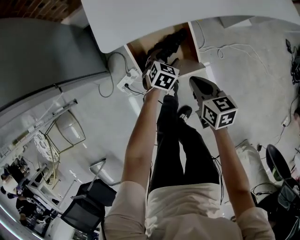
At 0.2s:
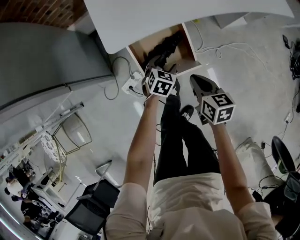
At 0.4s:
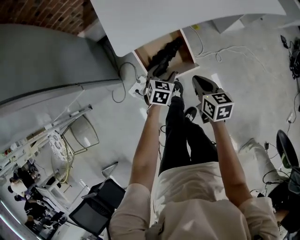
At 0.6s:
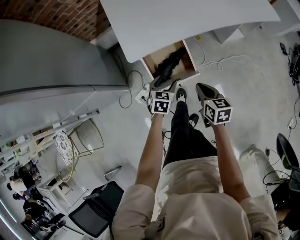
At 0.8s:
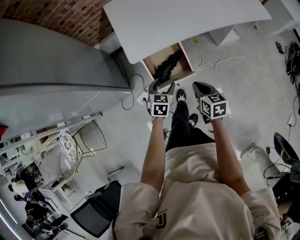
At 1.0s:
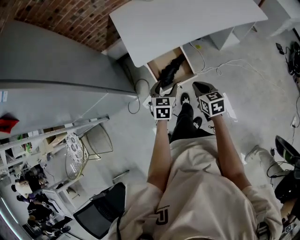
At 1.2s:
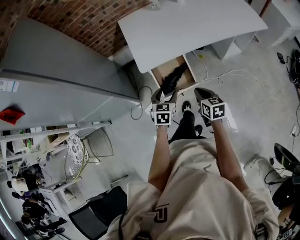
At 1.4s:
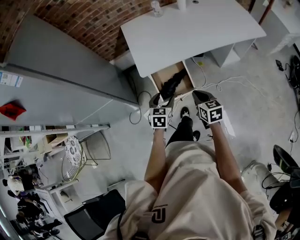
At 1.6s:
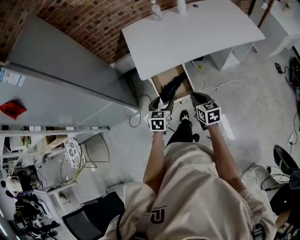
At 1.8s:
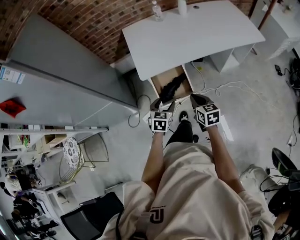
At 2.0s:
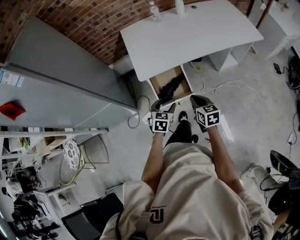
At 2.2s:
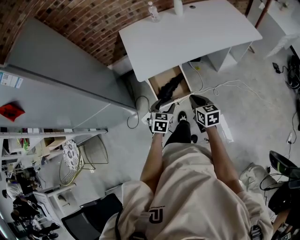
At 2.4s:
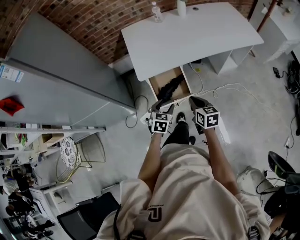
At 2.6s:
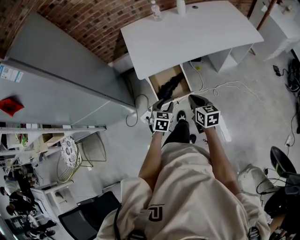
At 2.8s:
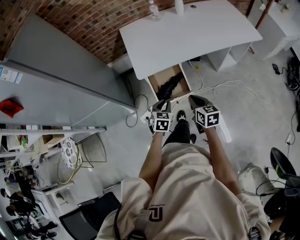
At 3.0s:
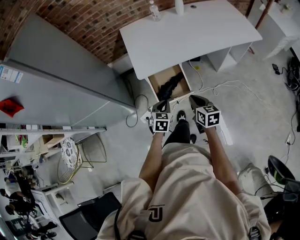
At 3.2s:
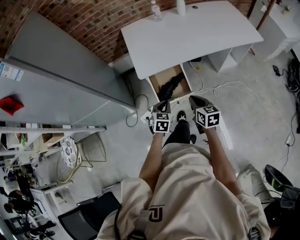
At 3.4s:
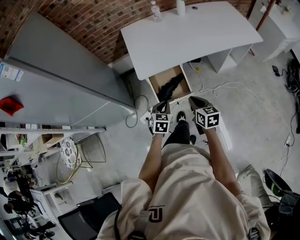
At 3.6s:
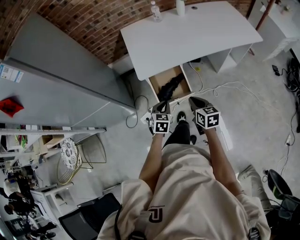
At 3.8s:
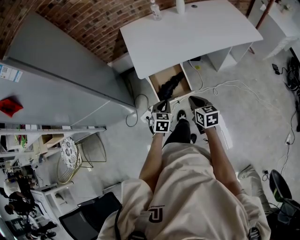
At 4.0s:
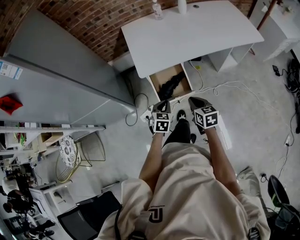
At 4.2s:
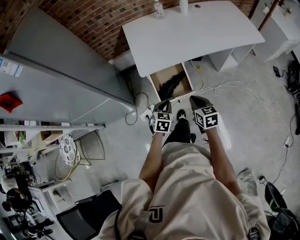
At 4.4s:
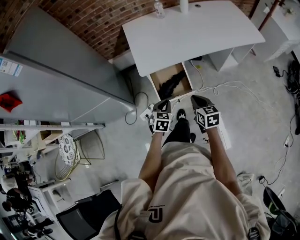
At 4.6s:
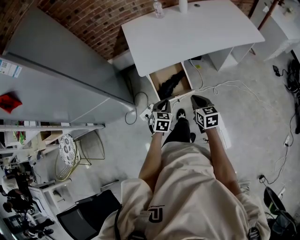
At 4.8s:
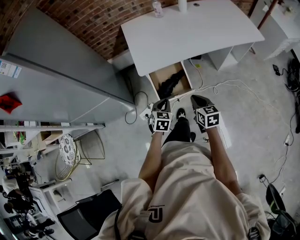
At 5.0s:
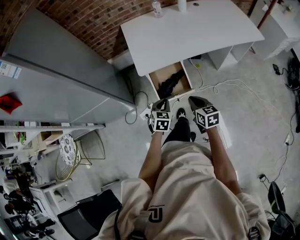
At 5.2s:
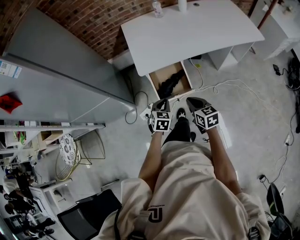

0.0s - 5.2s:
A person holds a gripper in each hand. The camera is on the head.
0.0s - 1.8s: The right gripper heads upward, covering approximately 20 cm; the left gripper heads upward and backward, covering about 35 cm.
1.8s - 3.4s: The left gripper closes.
3.4s - 5.2s: There are only small adjustments of the grippers.

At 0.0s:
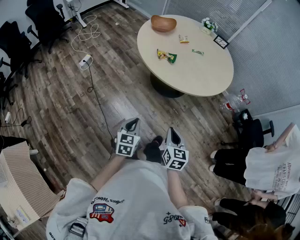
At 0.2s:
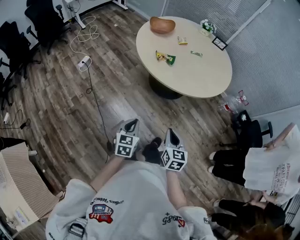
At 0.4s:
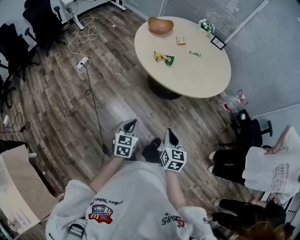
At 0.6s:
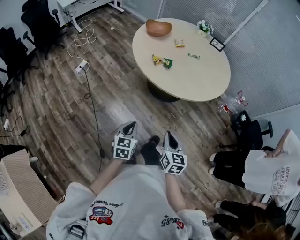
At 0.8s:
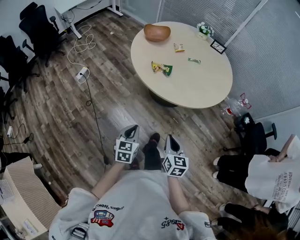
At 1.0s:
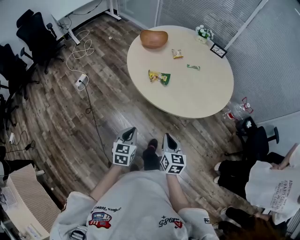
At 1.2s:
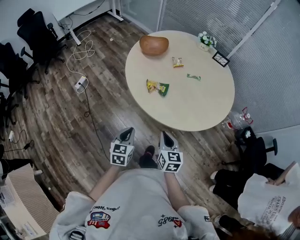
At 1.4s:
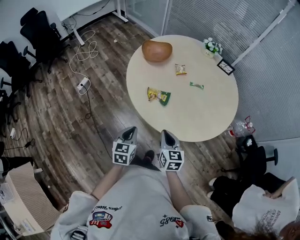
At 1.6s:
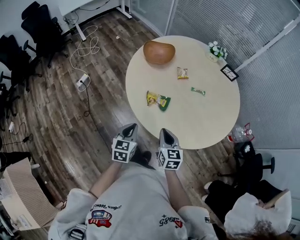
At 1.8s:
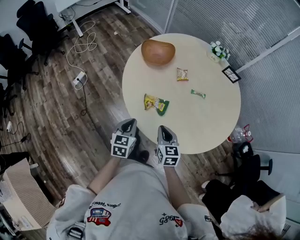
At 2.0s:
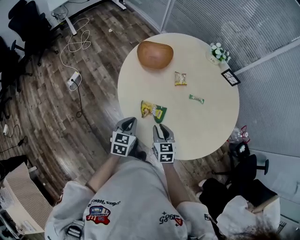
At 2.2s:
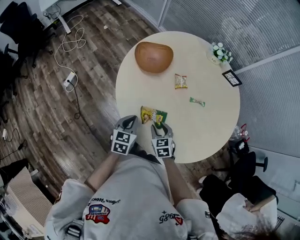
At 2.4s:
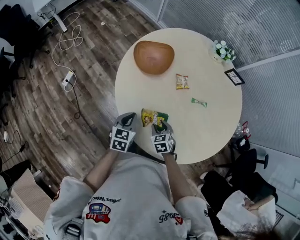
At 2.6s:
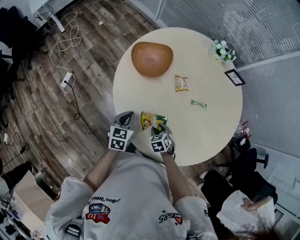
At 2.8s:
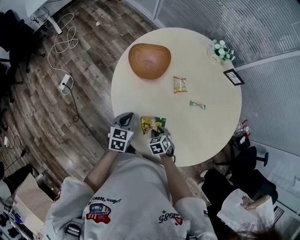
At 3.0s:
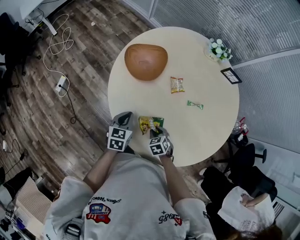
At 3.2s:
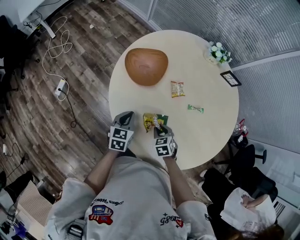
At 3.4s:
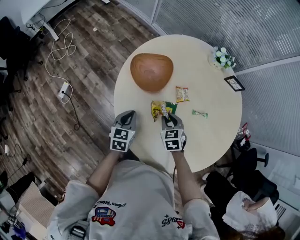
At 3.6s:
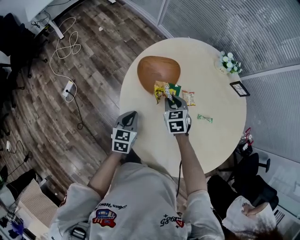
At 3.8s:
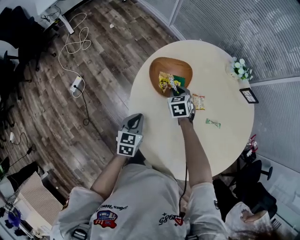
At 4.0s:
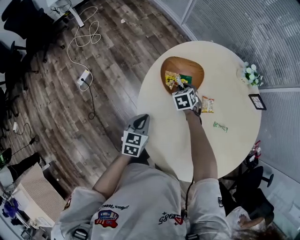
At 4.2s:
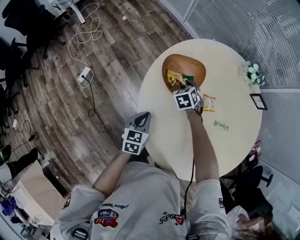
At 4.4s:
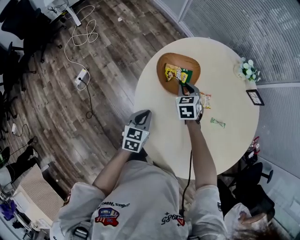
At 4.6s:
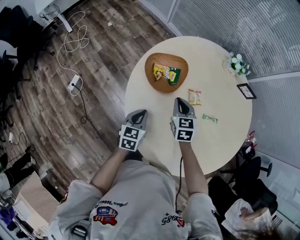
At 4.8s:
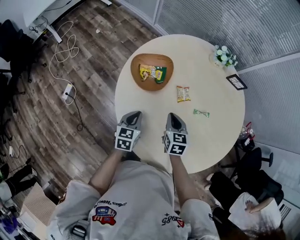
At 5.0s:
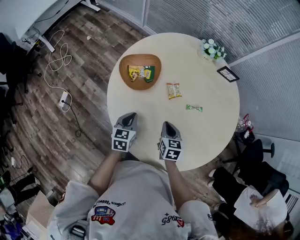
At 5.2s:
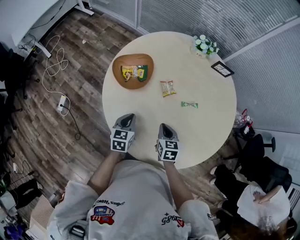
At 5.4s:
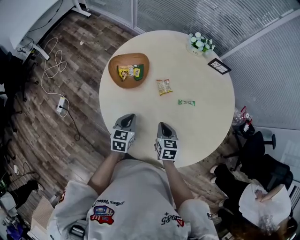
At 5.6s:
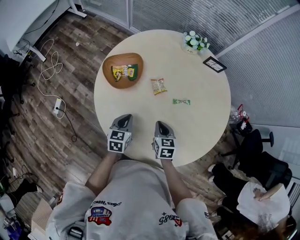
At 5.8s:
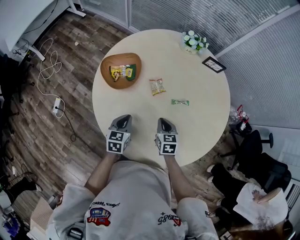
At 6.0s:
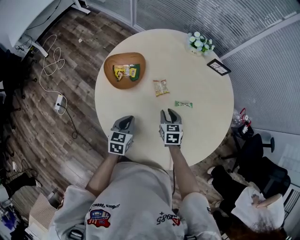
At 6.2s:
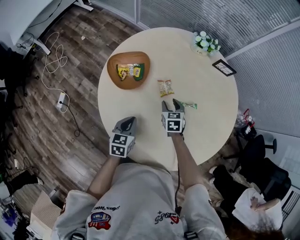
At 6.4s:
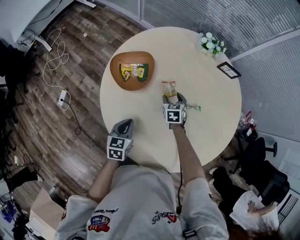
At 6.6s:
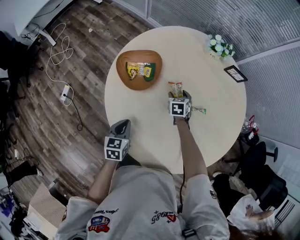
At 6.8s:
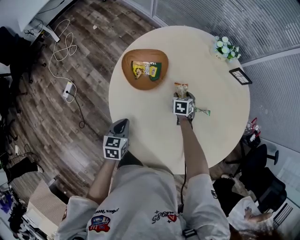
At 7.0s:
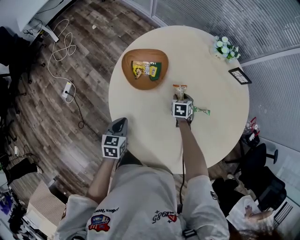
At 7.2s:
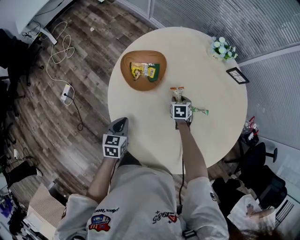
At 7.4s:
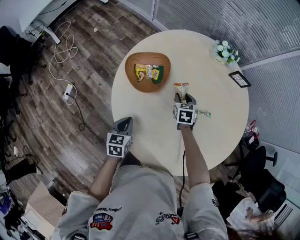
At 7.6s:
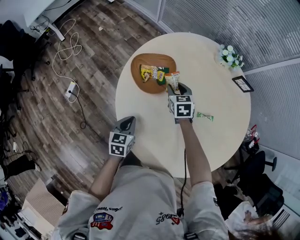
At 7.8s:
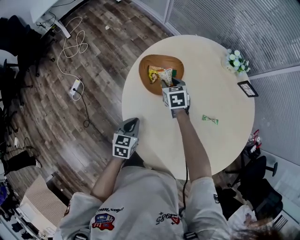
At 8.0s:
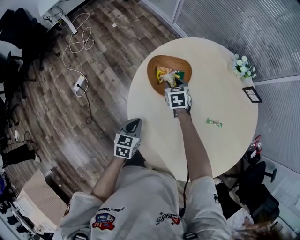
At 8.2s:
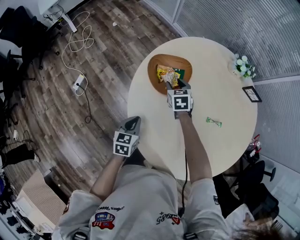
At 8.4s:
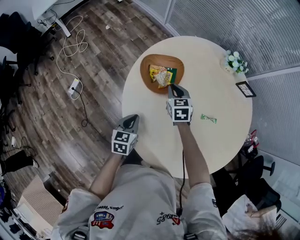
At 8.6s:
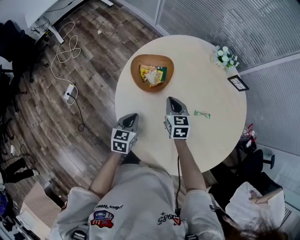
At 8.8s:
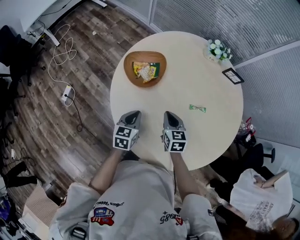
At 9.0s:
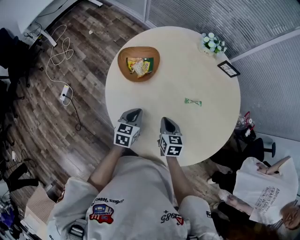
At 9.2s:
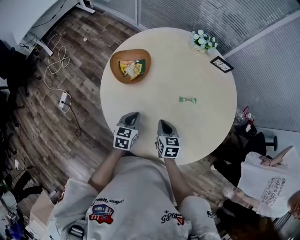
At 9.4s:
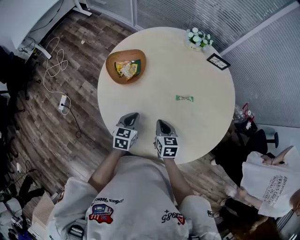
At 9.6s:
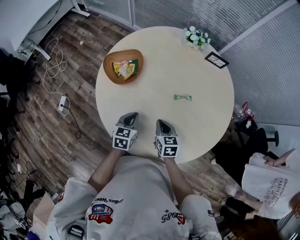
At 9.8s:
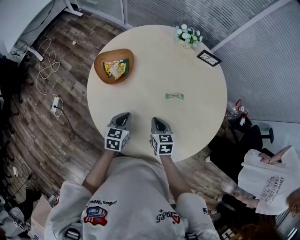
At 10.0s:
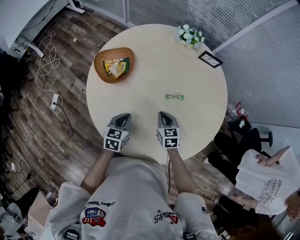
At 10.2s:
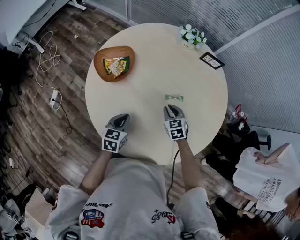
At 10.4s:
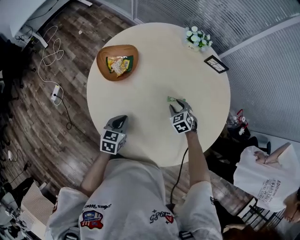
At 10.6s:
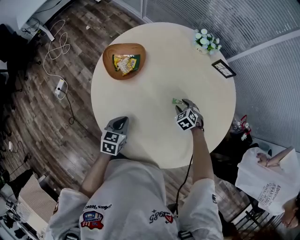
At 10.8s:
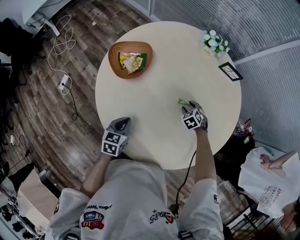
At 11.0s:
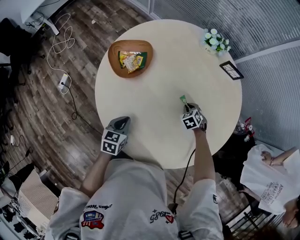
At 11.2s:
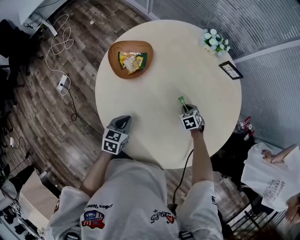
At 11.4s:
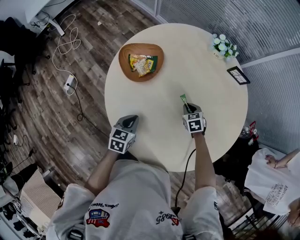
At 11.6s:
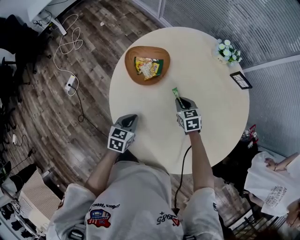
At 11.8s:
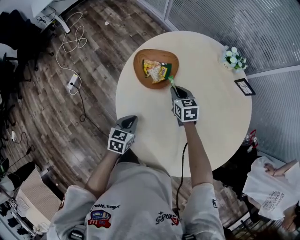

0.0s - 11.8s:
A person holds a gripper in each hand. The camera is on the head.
0.0s - 1.4s: The grippers both shift forward by about 30 cm.
1.4s - 3.0s: The right gripper is displaced forward and downward by about 30 cm, tilts its fingers roughly 40 degrees downward, and opens up; the left gripper travels forward by some 30 cm.
3.0s - 4.4s: The left gripper travels to the left and forward by approximately 10 cm. Meanwhile the right gripper travels forward and upward by approximately 30 cm.
4.4s - 6.0s: The left gripper shifts about 15 cm to the right, while the right gripper goes some 25 cm to the right and backward, and changes its angle by roughly 30 degrees.
6.0s - 7.4s: The right gripper goes roughly 15 cm forward and to the left, and opens, then closes once more; the left gripper goes some 10 cm to the left.
7.4s - 8.8s: The left gripper ends up about 5 cm from where it was. The right gripper travels backward, upward and to the left by some 15 cm, and closes up.
8.8s - 10.4s: The left gripper shifts approximately 10 cm to the right, while the right gripper shifts some 20 cm to the right and downward, changes its angle by some 40 degrees, and opens.
10.4s - 11.8s: The right gripper heads to the left and forward, covering some 25 cm, rotates approximately 30 degrees, and closes up; the left gripper goes about 10 cm to the left.

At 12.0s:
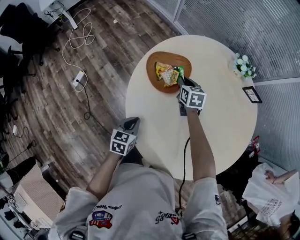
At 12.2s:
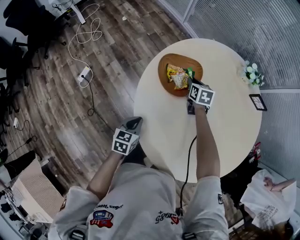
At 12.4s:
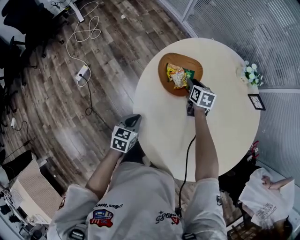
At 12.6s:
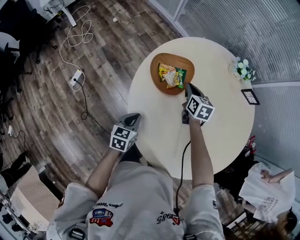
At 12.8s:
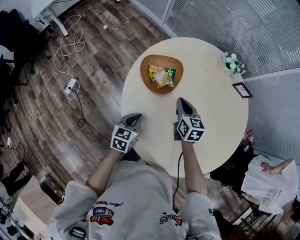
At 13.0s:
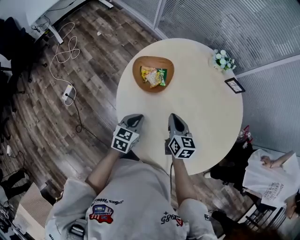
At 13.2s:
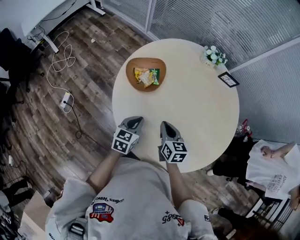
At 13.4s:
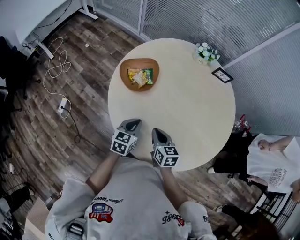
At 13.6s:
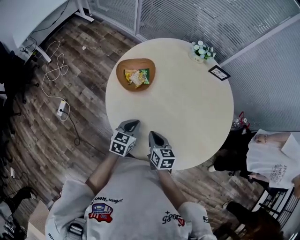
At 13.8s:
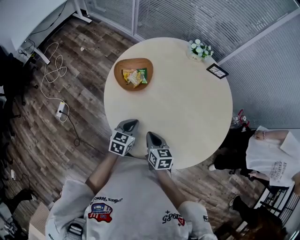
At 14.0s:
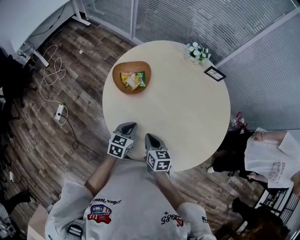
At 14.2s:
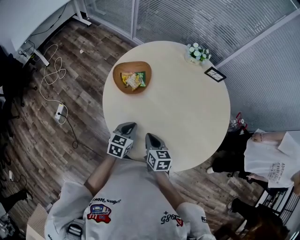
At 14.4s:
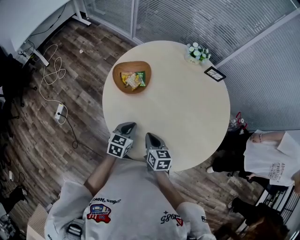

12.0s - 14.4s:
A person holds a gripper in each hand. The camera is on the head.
12.0s - 13.2s: The right gripper travels backward by some 25 cm. Meanwhile the left gripper heads to the right and upward, covering approximately 10 cm.
13.2s - 14.4s: The right gripper moves backward, approximately 5 cm.

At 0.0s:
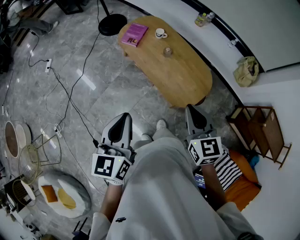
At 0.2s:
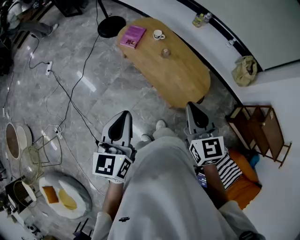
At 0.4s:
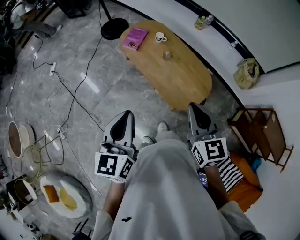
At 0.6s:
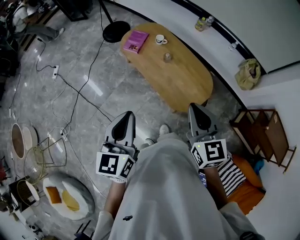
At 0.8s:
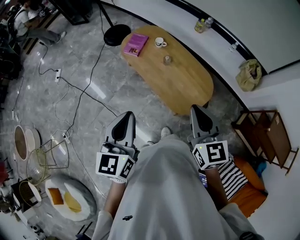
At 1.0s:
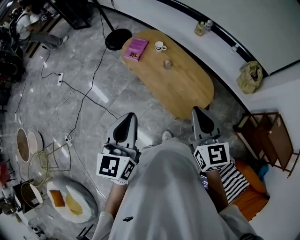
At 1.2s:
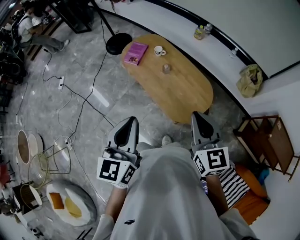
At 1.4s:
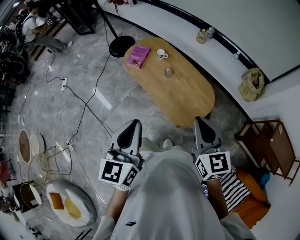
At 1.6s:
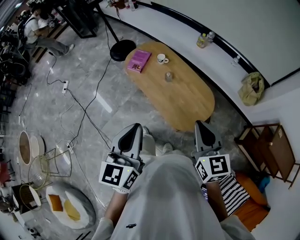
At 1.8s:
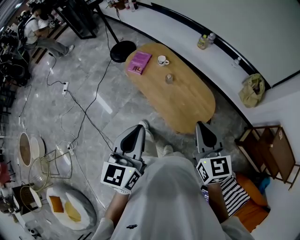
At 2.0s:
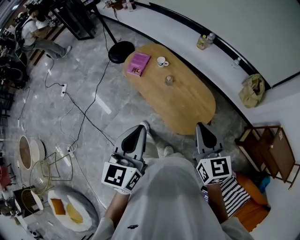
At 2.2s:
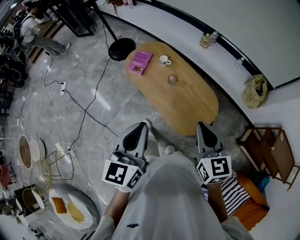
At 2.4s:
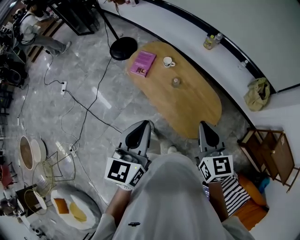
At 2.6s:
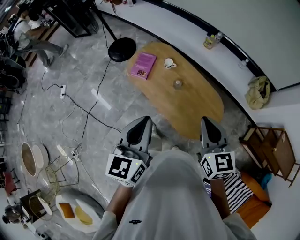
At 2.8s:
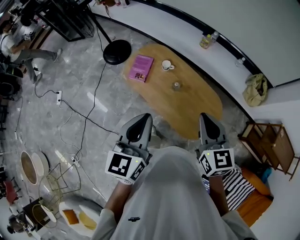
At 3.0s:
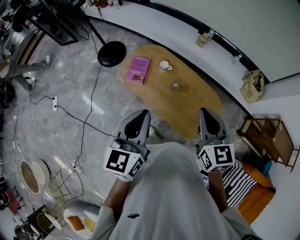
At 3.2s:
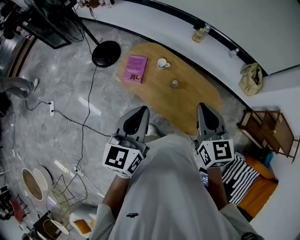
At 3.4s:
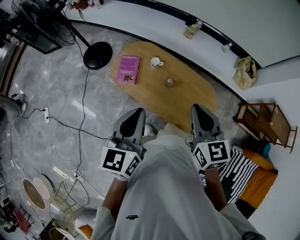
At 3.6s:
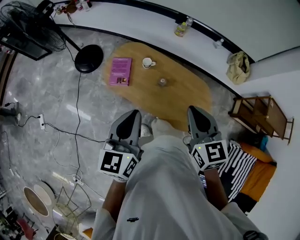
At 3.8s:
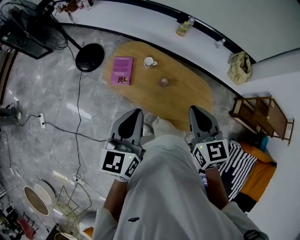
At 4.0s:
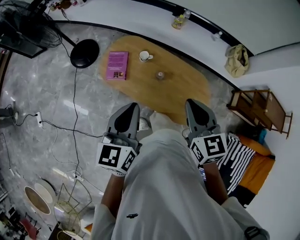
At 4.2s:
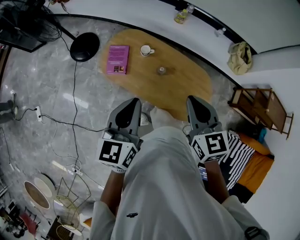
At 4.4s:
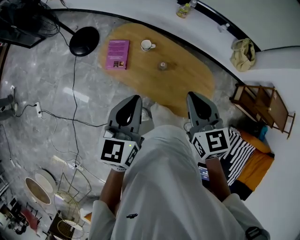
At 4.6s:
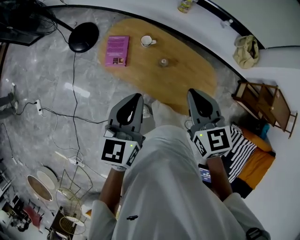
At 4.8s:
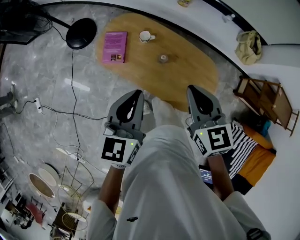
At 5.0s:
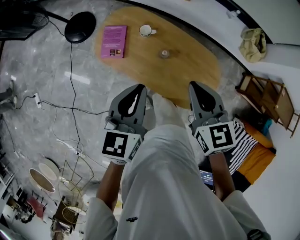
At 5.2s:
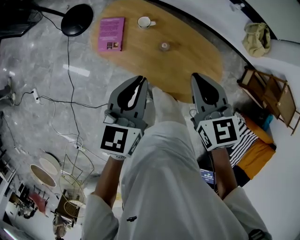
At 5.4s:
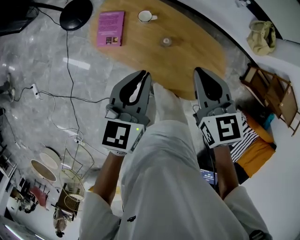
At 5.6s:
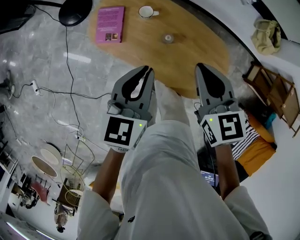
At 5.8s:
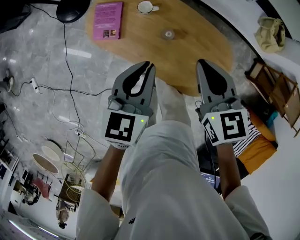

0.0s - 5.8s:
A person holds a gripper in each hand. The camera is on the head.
0.0s - 1.4s: The grippers both shift to the right by approximately 10 cm.
1.4s - 2.8s: The grippers both shift forward and to the left by about 20 cm.
2.8s - 4.4s: The left gripper heads forward, downward and to the left, covering approximately 15 cm. Meanwhile the right gripper shifts about 10 cm to the left and forward.
4.4s - 5.8s: The right gripper shifts about 15 cm downward and forward; the left gripper moves downward, forward and to the right, about 20 cm.
